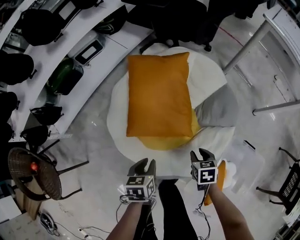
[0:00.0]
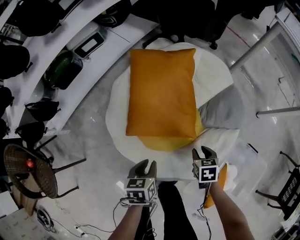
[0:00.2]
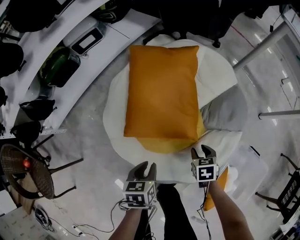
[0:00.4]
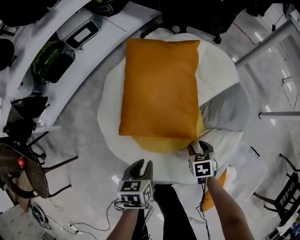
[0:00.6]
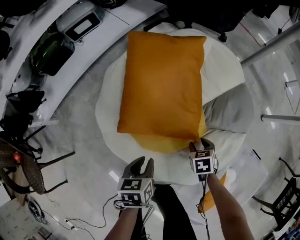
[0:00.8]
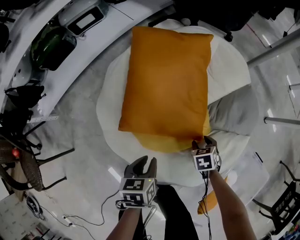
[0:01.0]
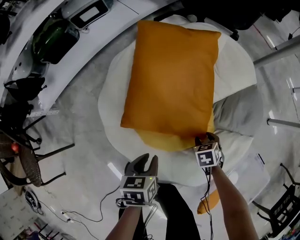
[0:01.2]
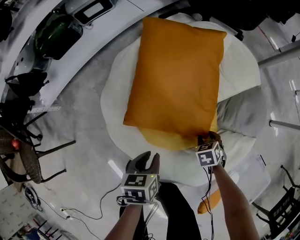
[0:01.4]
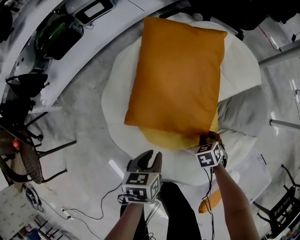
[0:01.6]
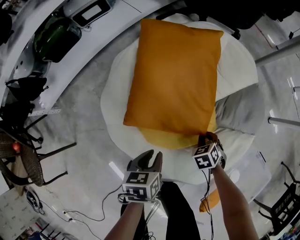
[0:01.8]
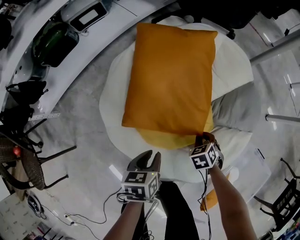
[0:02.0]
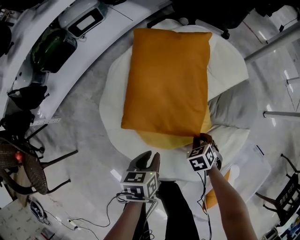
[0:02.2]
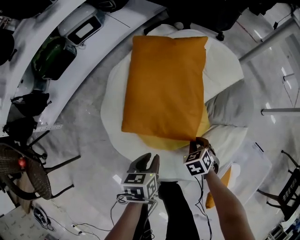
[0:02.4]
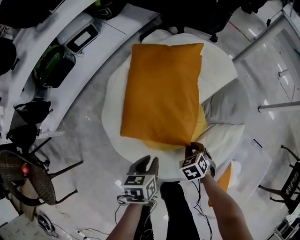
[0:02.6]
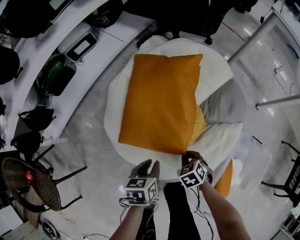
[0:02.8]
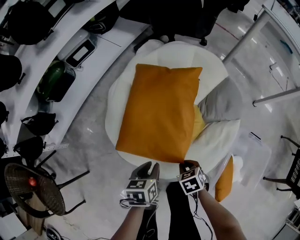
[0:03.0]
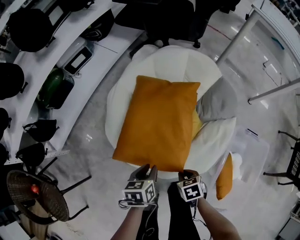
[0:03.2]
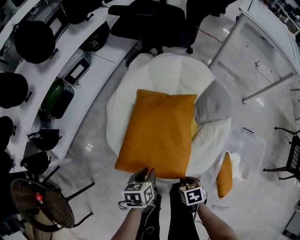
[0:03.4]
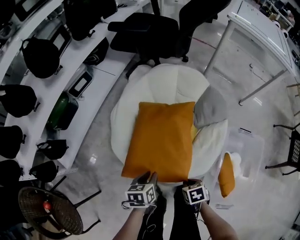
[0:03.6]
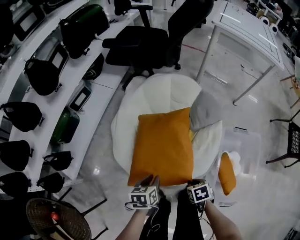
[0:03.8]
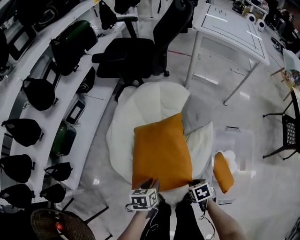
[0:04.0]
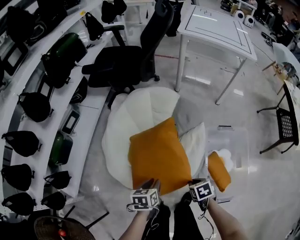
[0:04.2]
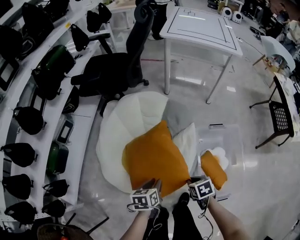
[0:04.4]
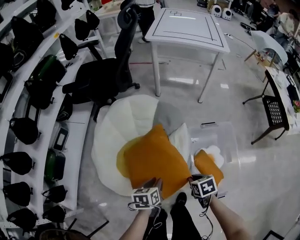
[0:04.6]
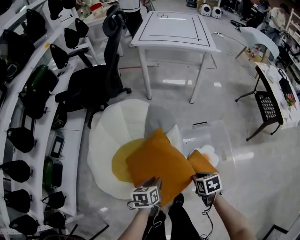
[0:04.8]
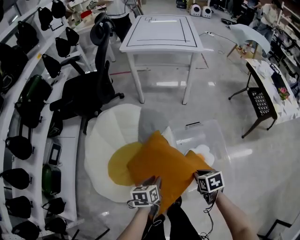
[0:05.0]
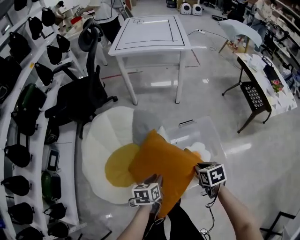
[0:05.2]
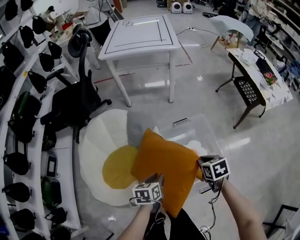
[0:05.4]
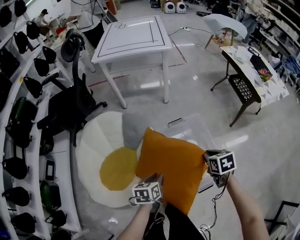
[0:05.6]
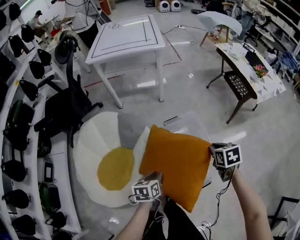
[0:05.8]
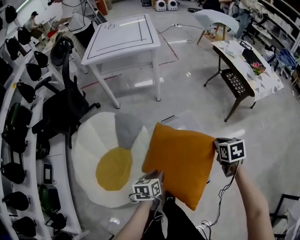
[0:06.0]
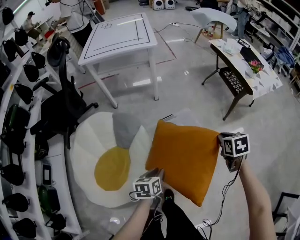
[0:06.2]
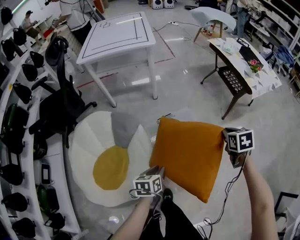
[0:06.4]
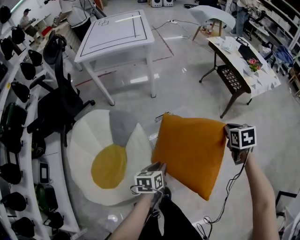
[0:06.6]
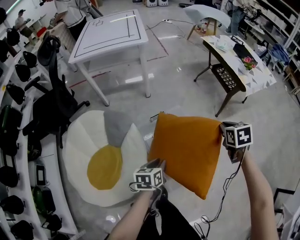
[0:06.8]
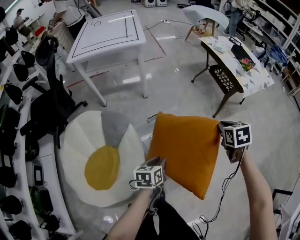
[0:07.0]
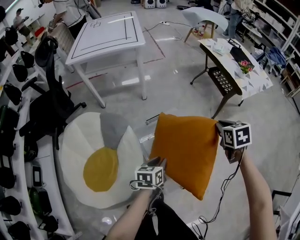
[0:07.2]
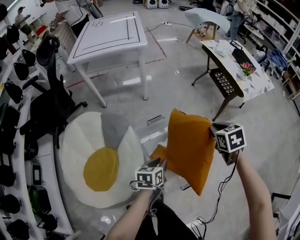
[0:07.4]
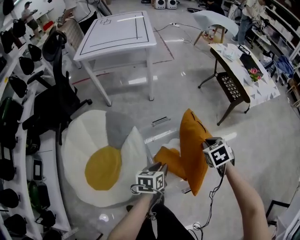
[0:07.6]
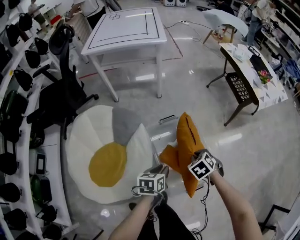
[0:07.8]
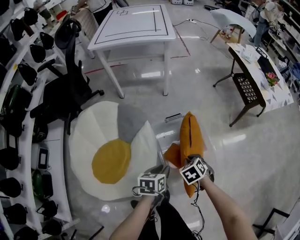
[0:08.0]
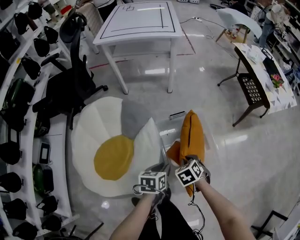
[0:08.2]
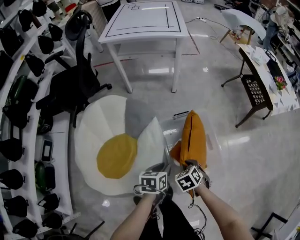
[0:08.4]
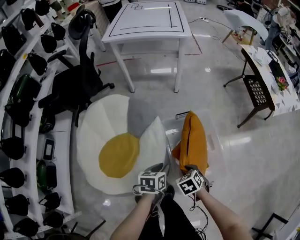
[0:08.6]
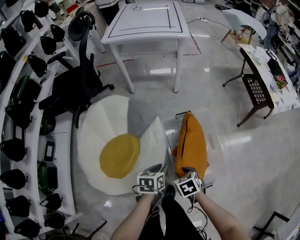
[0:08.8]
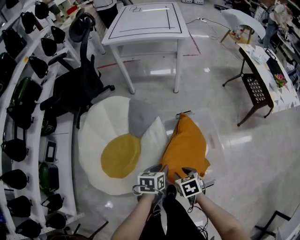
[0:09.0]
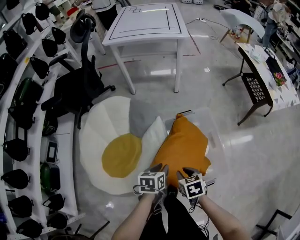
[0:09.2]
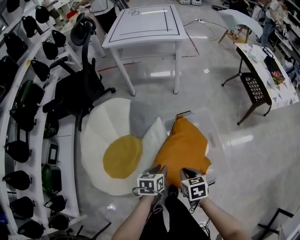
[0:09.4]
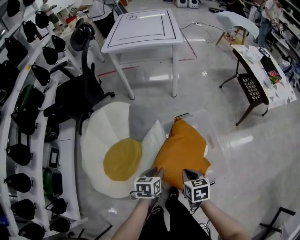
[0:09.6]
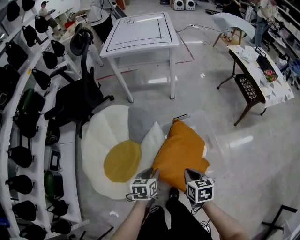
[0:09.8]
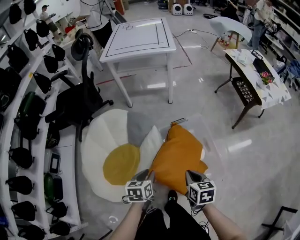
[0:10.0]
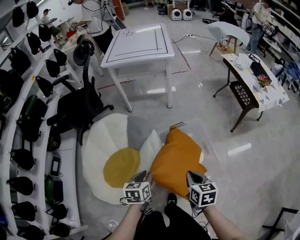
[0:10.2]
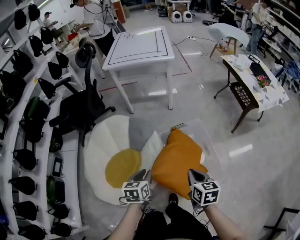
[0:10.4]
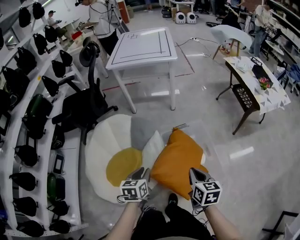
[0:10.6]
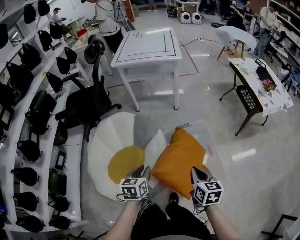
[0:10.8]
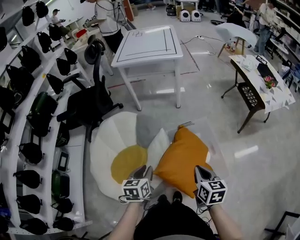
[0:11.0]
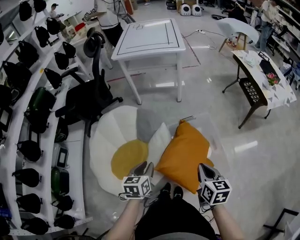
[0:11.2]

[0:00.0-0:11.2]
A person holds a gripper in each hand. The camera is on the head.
0:00.0 to 0:01.6: The left gripper moves downward, some 15 cm, while the right gripper goes some 20 cm downward, and swivels some 30 degrees.
0:01.6 to 0:03.2: The right gripper moves approximately 30 cm, and swivels approximately 30 degrees. The left gripper moves upward, about 10 cm.
0:03.2 to 0:04.8: The right gripper ends up about 35 cm from where it was, and changes its angle by roughly 40 degrees, while the left gripper ends up about 30 cm from where it was, and turns by approximately 30 degrees.
0:04.8 to 0:06.4: The right gripper moves approximately 40 cm, and turns by some 30 degrees, while the left gripper changes place by about 25 cm, and turns by approximately 20 degrees.
0:06.4 to 0:08.0: The right gripper shifts about 25 cm to the left, downward and backward, and changes its angle by approximately 40 degrees.
0:08.0 to 0:09.6: The right gripper heads backward, to the left and upward, covering approximately 15 cm, changes its angle by roughly 40 degrees, and opens, then closes once more. The left gripper is displaced to the left and backward by approximately 10 cm.
0:09.6 to 0:11.2: The right gripper is displaced upward and to the right by about 15 cm, and changes its angle by some 20 degrees. The left gripper is displaced upward and to the left by about 10 cm.

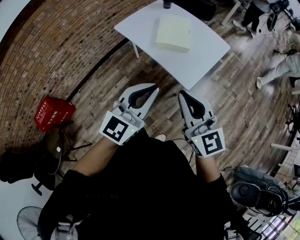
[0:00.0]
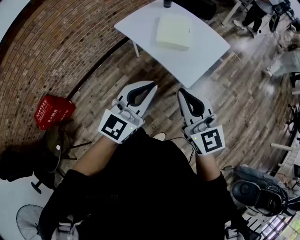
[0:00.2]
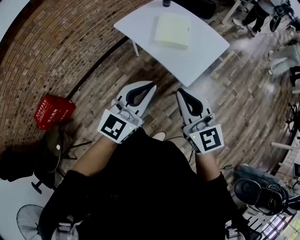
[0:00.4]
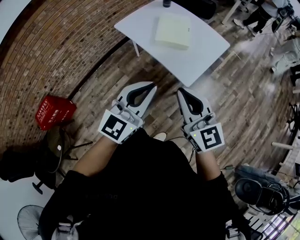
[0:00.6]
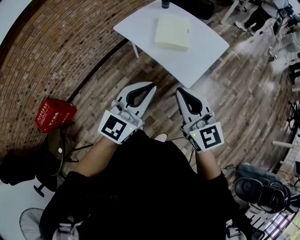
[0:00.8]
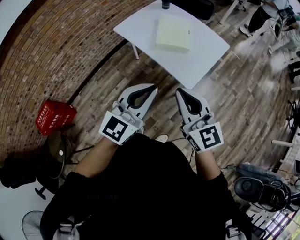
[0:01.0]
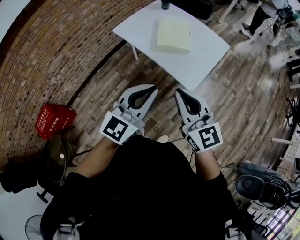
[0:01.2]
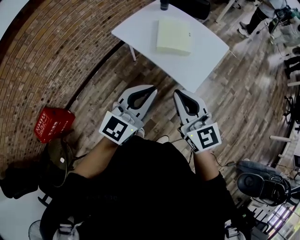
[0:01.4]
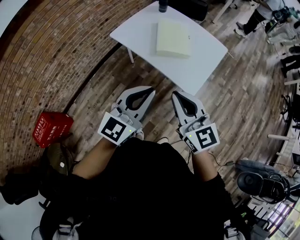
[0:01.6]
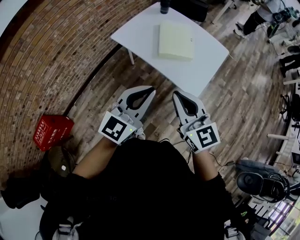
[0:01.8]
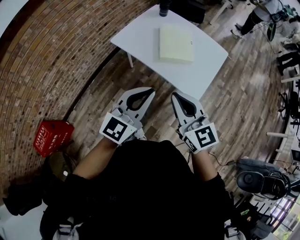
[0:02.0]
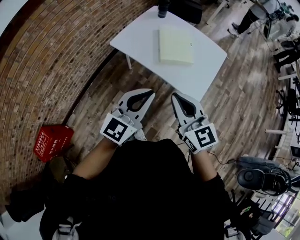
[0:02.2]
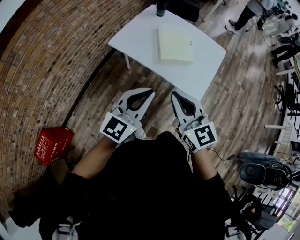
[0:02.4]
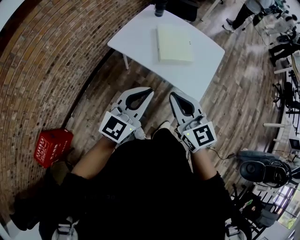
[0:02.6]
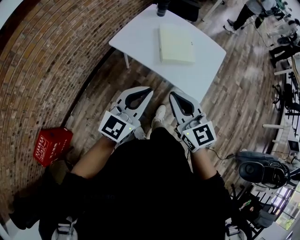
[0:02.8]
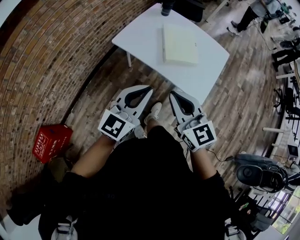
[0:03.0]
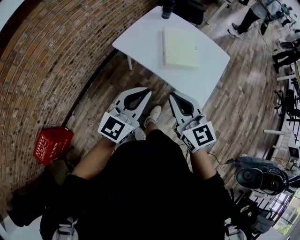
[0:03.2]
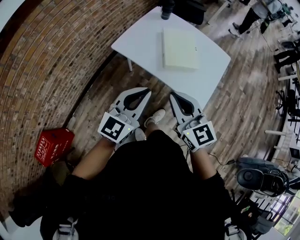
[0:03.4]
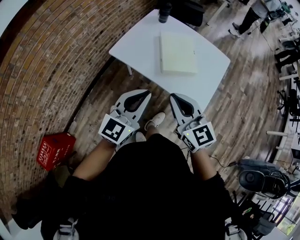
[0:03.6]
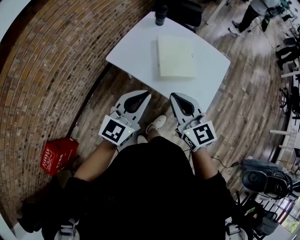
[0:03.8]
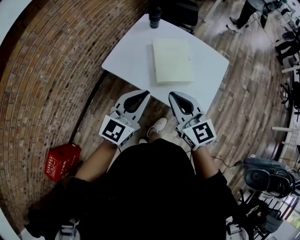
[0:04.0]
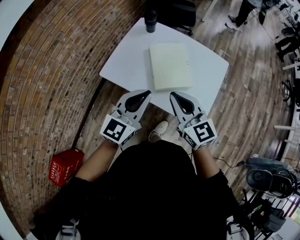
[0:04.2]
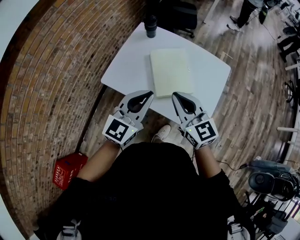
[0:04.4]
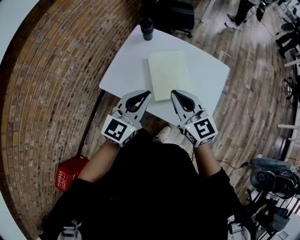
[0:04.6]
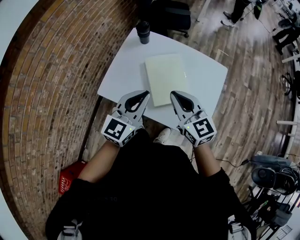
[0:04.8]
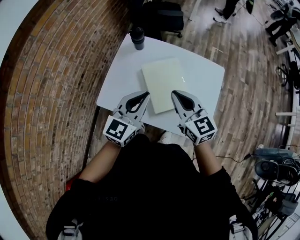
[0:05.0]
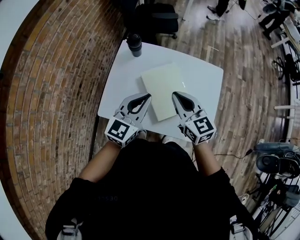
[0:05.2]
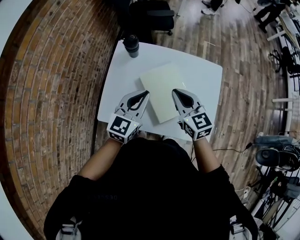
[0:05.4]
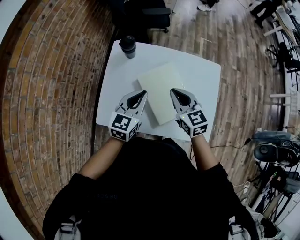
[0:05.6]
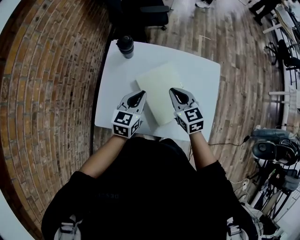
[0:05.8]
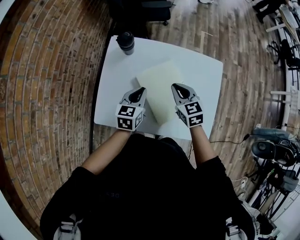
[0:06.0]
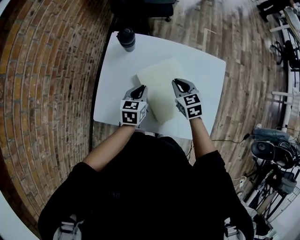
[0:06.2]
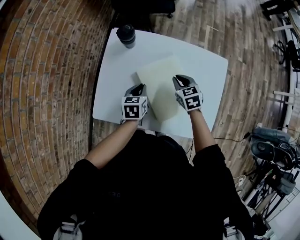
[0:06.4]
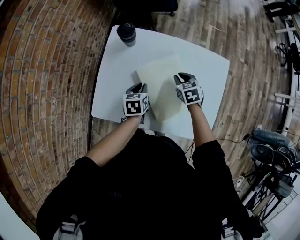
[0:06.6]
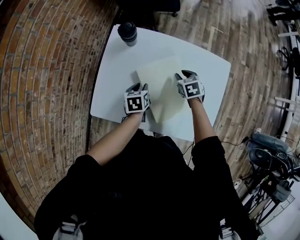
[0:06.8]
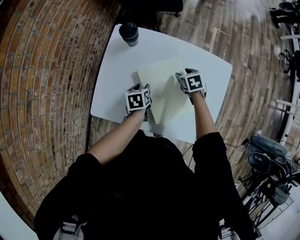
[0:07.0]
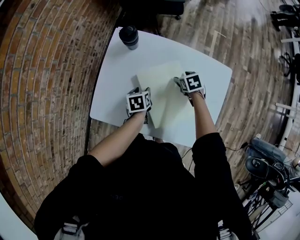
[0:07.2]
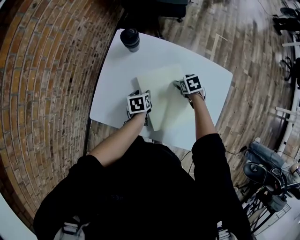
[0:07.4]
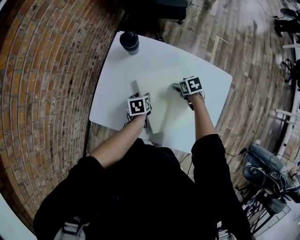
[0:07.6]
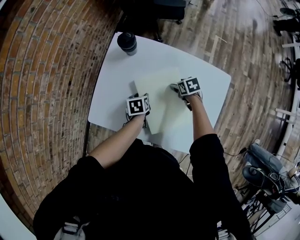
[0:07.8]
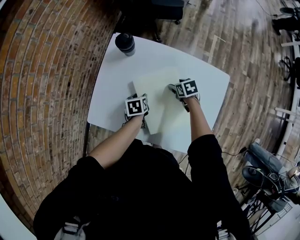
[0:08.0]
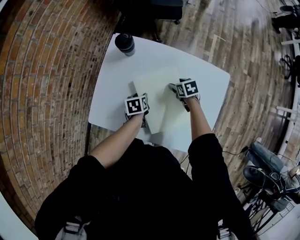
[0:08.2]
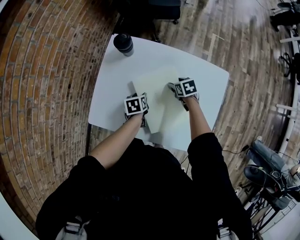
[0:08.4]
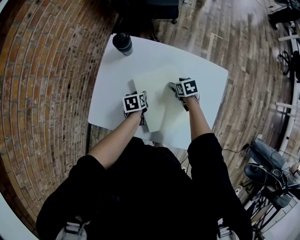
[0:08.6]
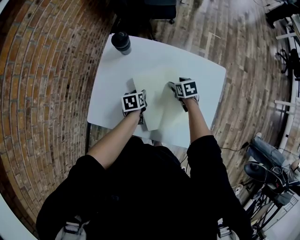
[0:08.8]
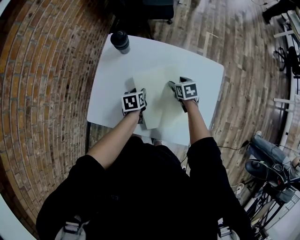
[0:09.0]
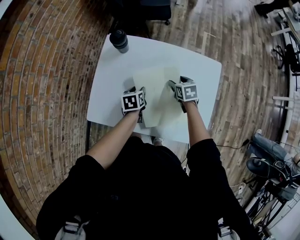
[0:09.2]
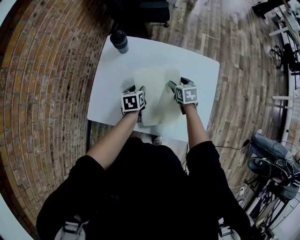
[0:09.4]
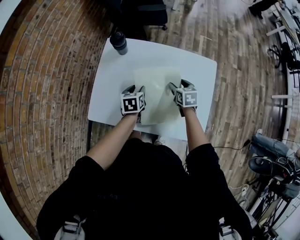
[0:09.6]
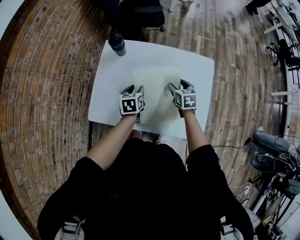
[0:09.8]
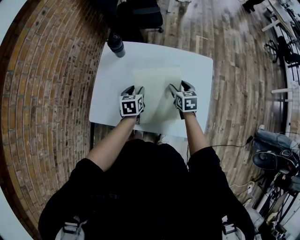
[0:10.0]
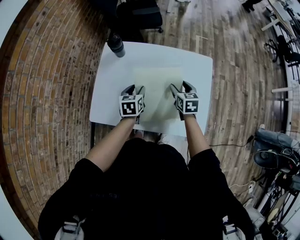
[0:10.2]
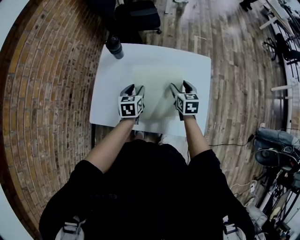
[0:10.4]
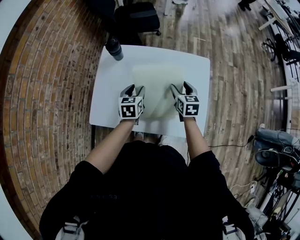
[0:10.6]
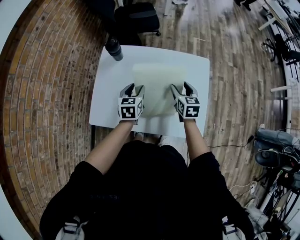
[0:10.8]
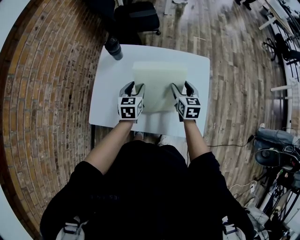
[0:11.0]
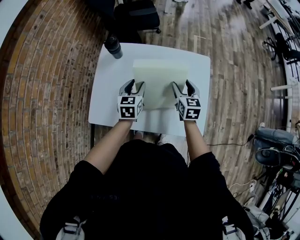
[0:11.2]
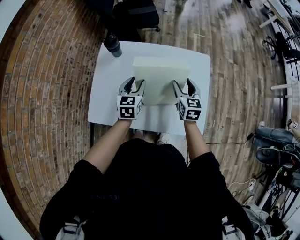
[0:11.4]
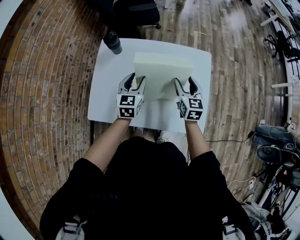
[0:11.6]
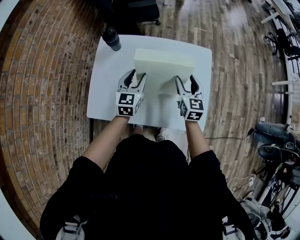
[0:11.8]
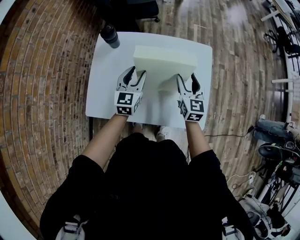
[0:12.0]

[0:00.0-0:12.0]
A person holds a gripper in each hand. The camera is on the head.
0:00.0 to 0:01.6: The two grippers go approximately 10 cm to the left and forward.
0:01.6 to 0:03.0: Both grippers move to the left and forward, about 15 cm.
0:03.0 to 0:04.4: The grippers both shift forward by roughly 25 cm.
0:04.4 to 0:06.0: The grippers both shift forward and downward by some 30 cm. The left gripper rotates about 30 degrees. Meanwhile the right gripper rotates some 30 degrees.
0:06.0 to 0:07.6: The right gripper moves downward and forward, roughly 20 cm, rotates roughly 40 degrees, and opens, while the left gripper travels downward by about 15 cm, tilts its fingers roughly 30 degrees downward, and opens its fingers.
0:07.6 to 0:09.0: The right gripper ends up approximately 5 cm from where it was.
0:09.0 to 0:10.4: The right gripper moves upward and backward, some 15 cm, and turns by about 30 degrees, while the left gripper goes roughly 10 cm upward, and rotates about 30 degrees.
0:10.4 to 0:12.0: Both grippers move upward, some 5 cm. The right gripper rotates approximately 20 degrees. Meanwhile the left gripper changes its angle by roughly 30 degrees.
